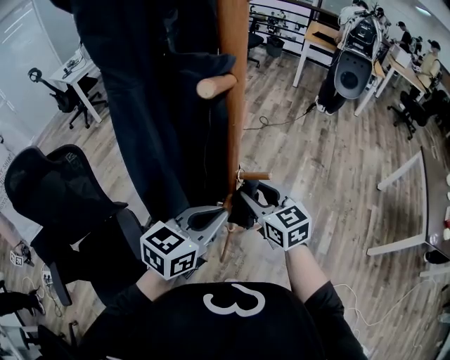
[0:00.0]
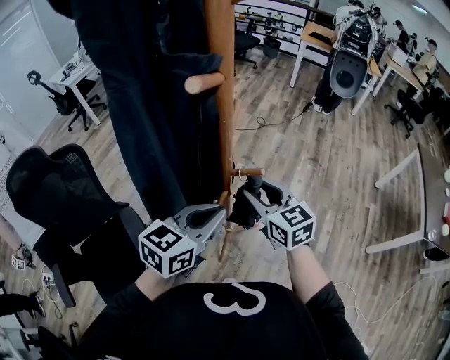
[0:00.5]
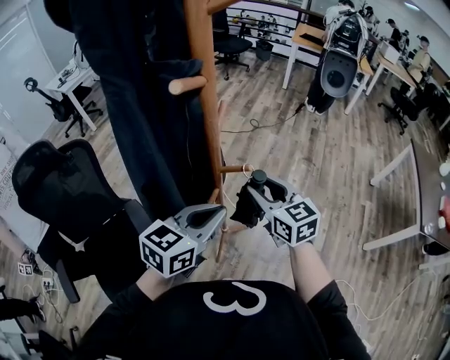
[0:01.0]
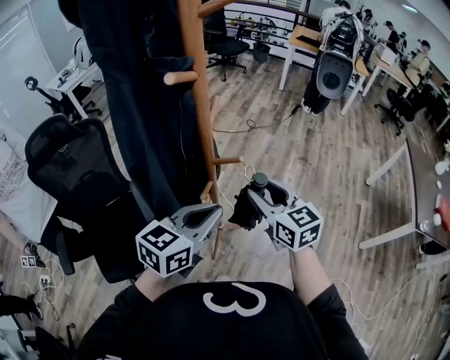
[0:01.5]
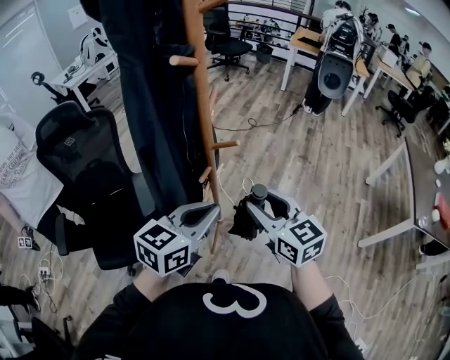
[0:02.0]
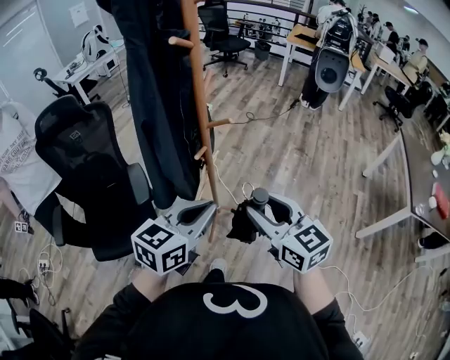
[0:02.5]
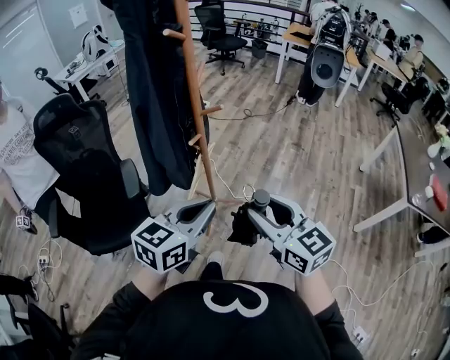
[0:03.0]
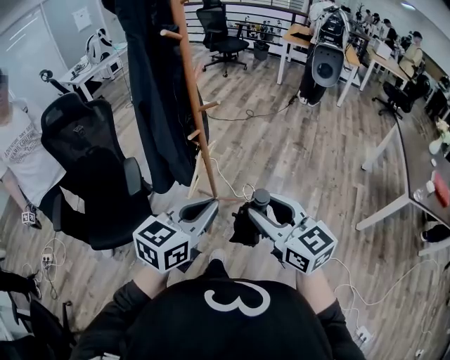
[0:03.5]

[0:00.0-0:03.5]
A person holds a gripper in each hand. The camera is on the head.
0:00.0 to 0:02.0: The right gripper goes some 20 cm backward, to the right and upward. The left gripper moves backward and to the right, approximately 10 cm.
0:02.0 to 0:03.5: Both grippers move backward, approximately 15 cm.

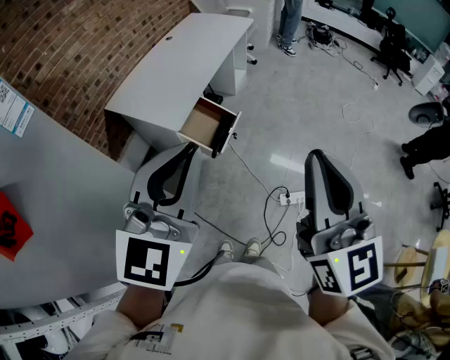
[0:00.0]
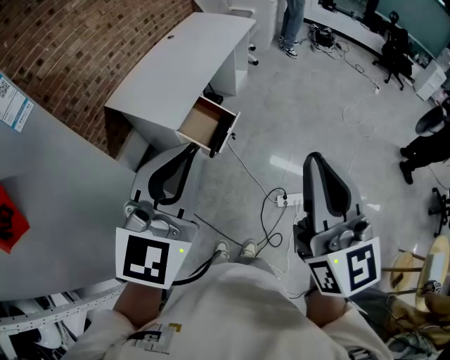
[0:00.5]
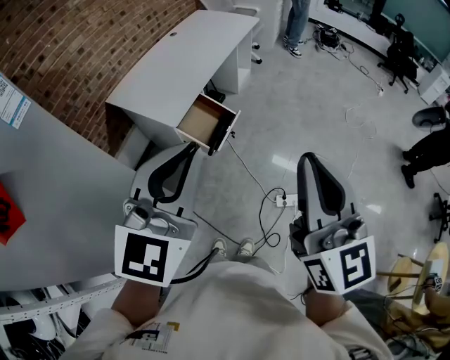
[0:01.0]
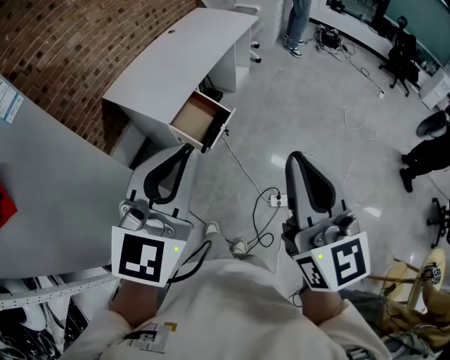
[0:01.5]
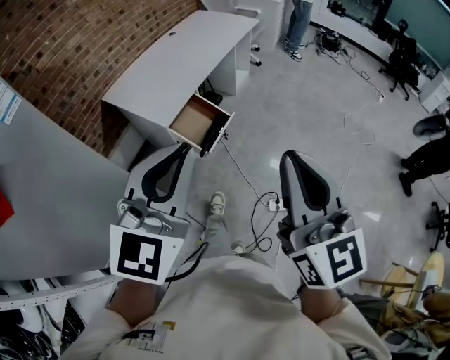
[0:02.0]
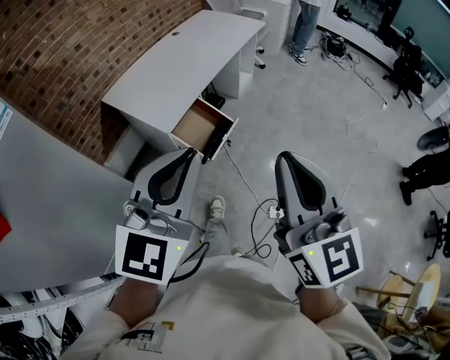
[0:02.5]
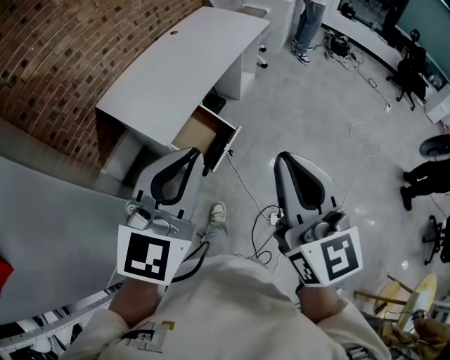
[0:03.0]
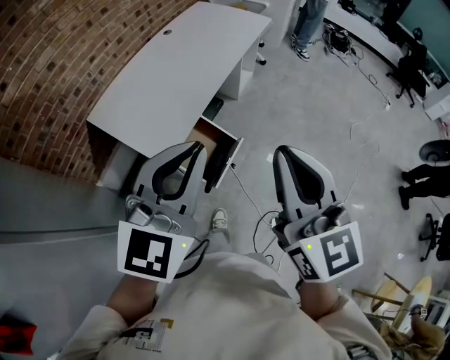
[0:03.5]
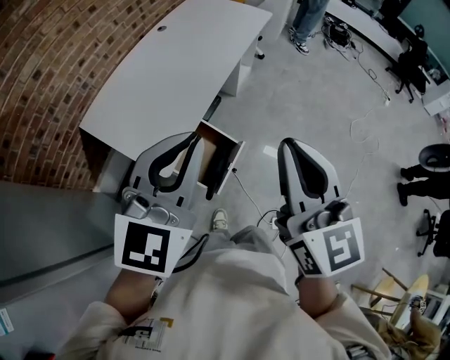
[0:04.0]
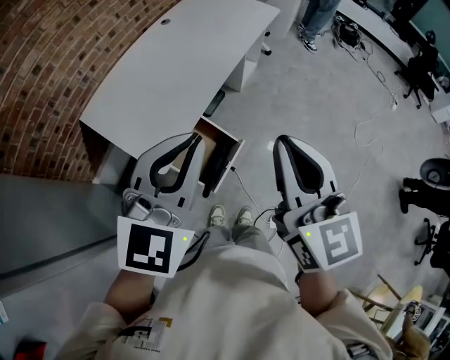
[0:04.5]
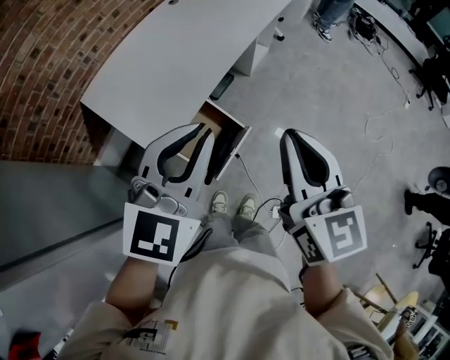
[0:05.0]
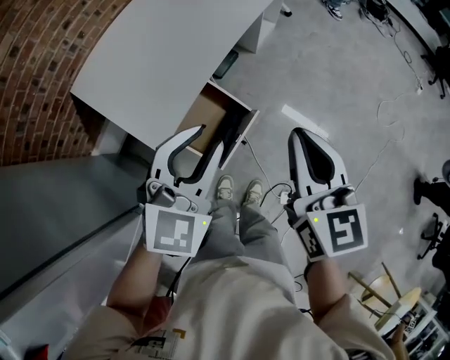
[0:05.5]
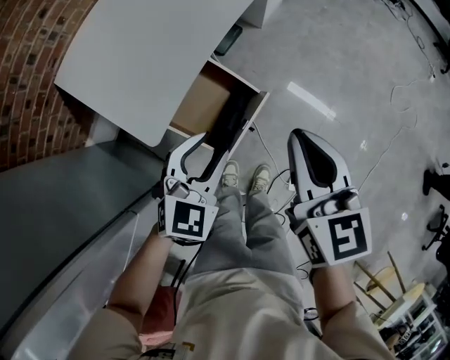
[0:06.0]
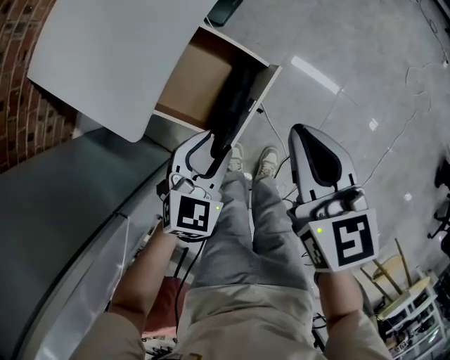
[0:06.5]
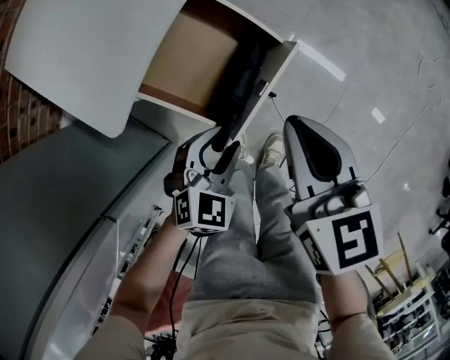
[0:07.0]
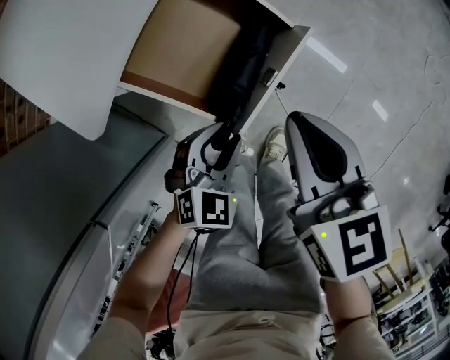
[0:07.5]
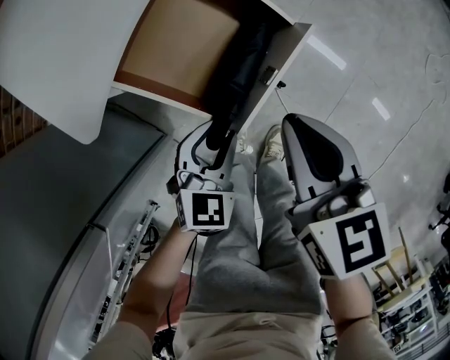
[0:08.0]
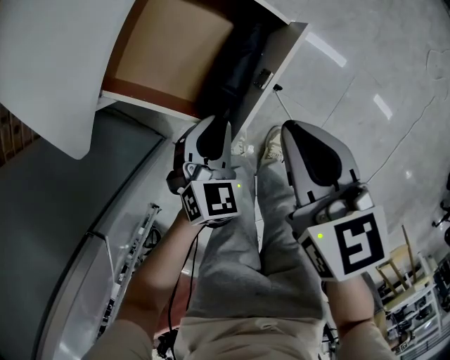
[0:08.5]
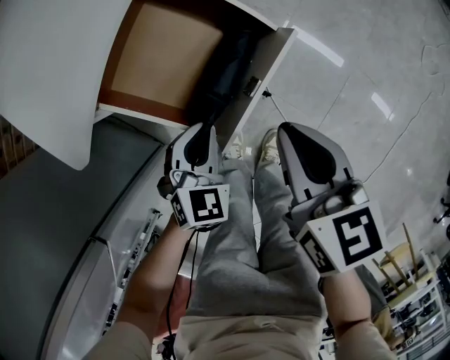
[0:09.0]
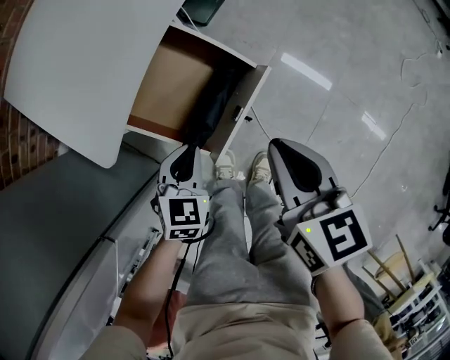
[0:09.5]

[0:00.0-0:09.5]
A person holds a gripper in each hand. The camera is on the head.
0:00.0 to 0:02.0: The left gripper moves to the right, roughly 5 cm. Meanwhile the right gripper changes place by approximately 5 cm.
0:02.0 to 0:04.0: The grippers both shift forward by some 40 cm.
0:04.0 to 0:05.5: The right gripper moves downward and forward, some 20 cm. The left gripper goes approximately 20 cm downward, and opens up.
0:05.5 to 0:07.5: The two grippers go roughly 40 cm downward. The left gripper turns by approximately 20 degrees, while the right gripper changes its angle by roughly 20 degrees.
0:07.5 to 0:09.5: The right gripper travels to the right by roughly 5 cm. The left gripper shifts about 10 cm forward and upward, swivels some 20 degrees, and closes.

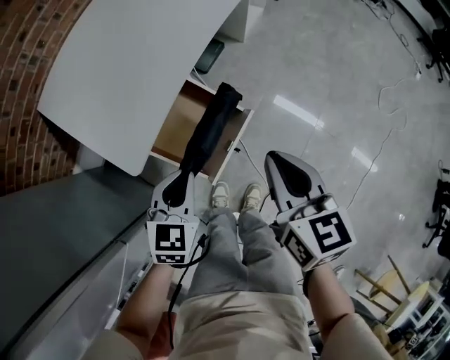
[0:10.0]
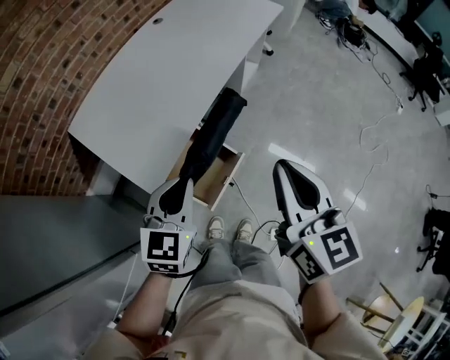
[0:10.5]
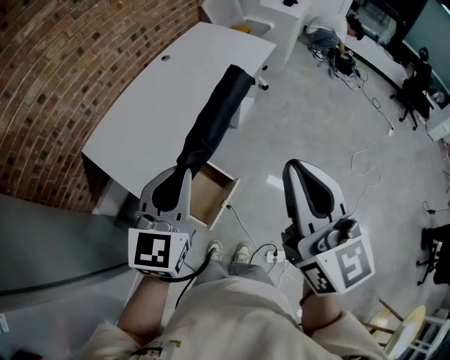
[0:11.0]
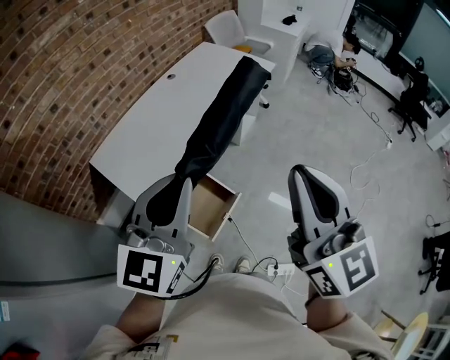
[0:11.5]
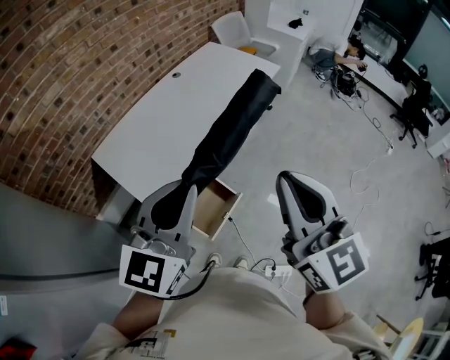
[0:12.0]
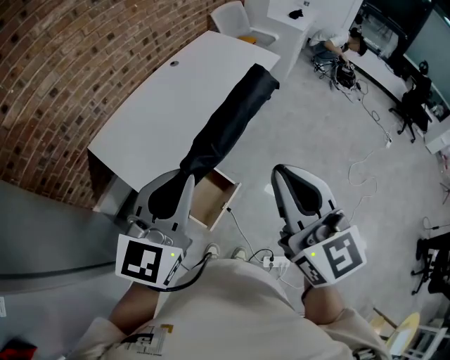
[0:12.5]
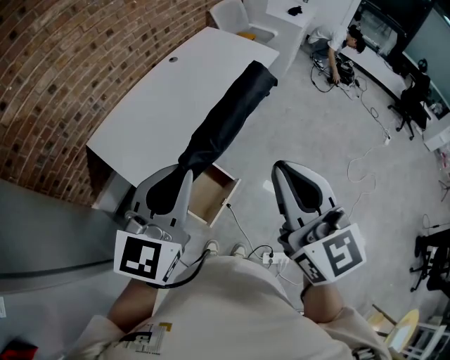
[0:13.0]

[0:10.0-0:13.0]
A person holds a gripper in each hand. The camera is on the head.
0:10.0 to 0:11.5: The two grippers go about 50 cm upward. The left gripper points its fingers about 40 degrees further upward; the right gripper points its fingers roughly 30 degrees further upward.
0:11.5 to 0:13.0: The right gripper ends up about 5 cm from where it was.

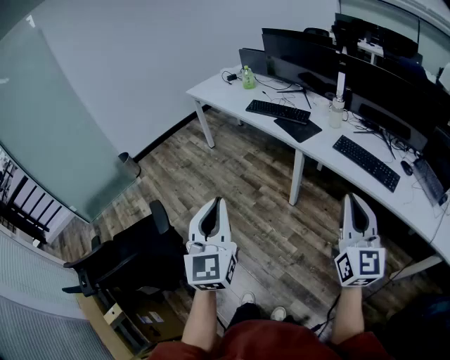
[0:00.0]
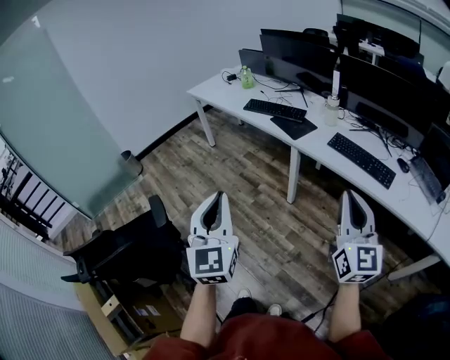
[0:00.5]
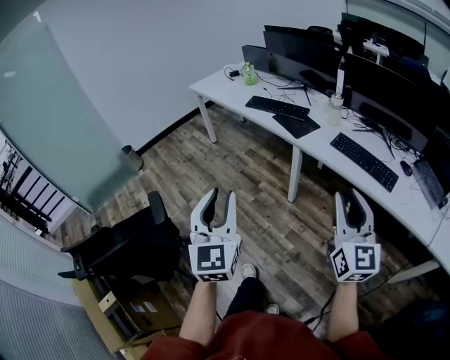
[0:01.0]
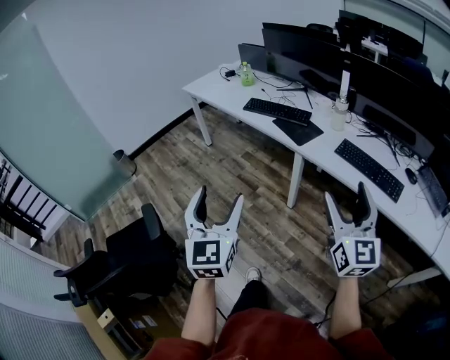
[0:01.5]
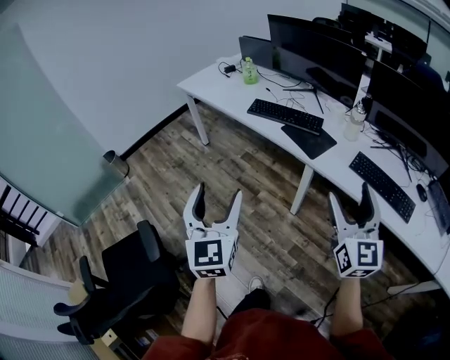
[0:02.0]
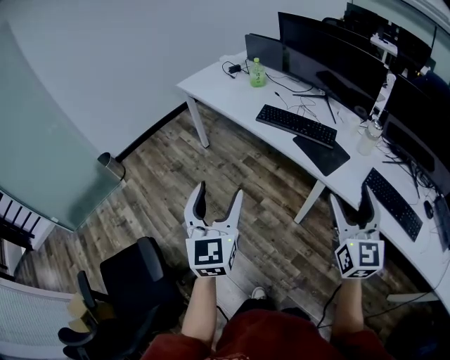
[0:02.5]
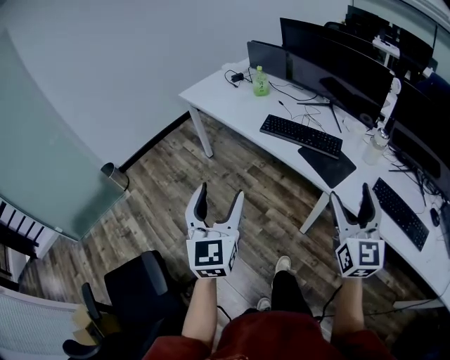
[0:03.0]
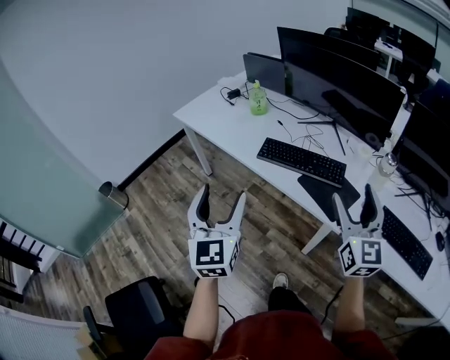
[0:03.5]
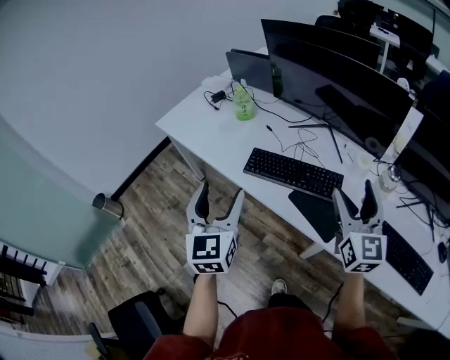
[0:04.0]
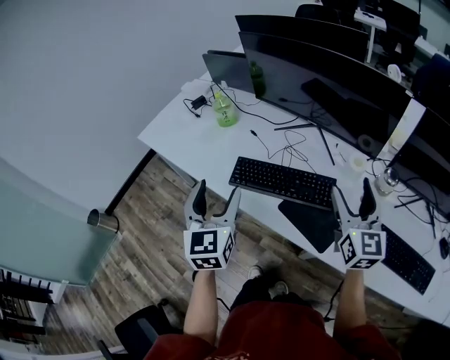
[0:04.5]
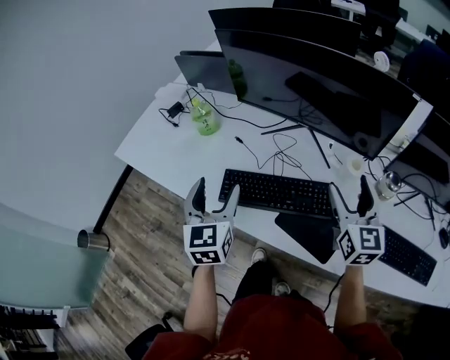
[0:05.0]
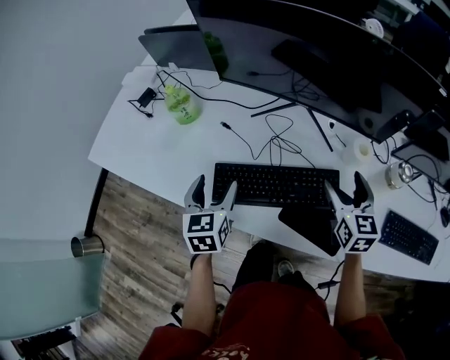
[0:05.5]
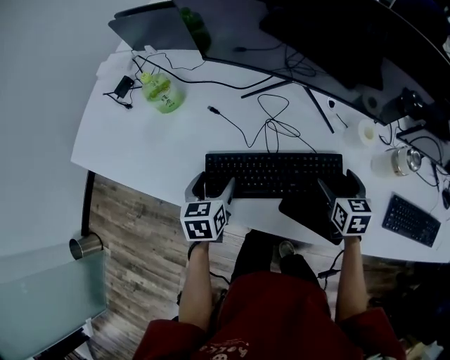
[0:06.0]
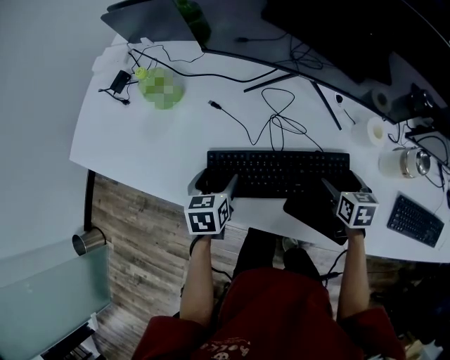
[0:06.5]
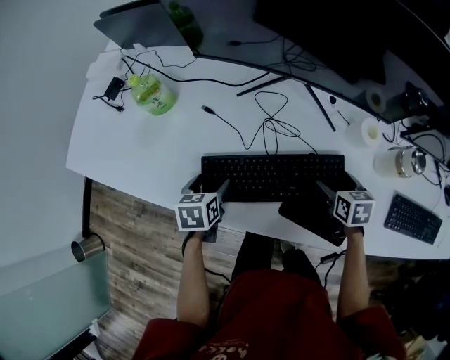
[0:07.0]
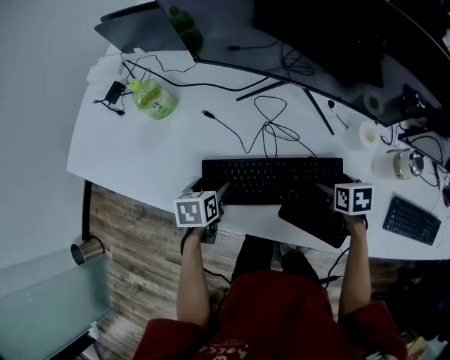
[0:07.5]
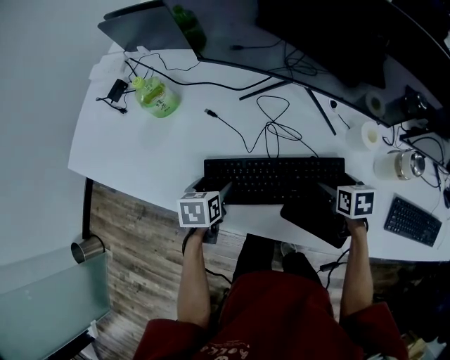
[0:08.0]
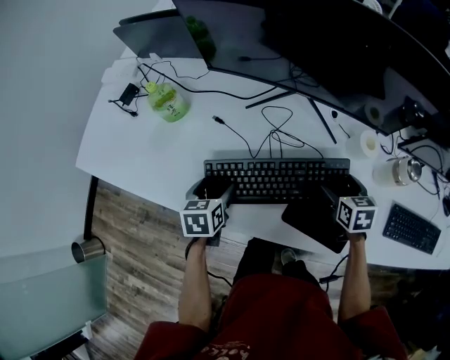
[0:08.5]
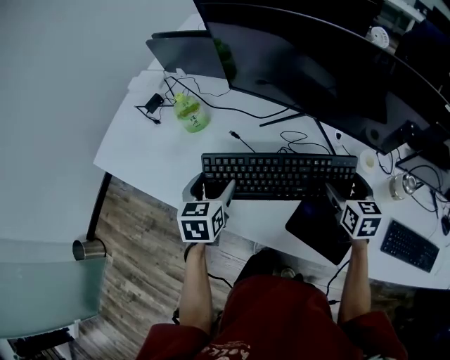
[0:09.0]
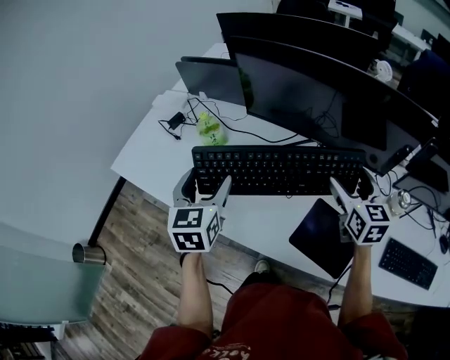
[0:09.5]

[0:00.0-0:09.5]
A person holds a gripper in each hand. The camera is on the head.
0:00.0 to 0:02.0: Both grippers move forward, some 25 cm. The right gripper opens its fingers. The left gripper opens up.
0:02.0 to 0:04.0: The pair of grippers is taken forward, about 40 cm.
0:04.0 to 0:05.5: The two grippers go approximately 30 cm forward and downward. The left gripper rotates approximately 30 degrees. Meanwhile the right gripper turns by roughly 30 degrees.
0:05.5 to 0:07.5: Both grippers travel together downward, roughly 15 cm. The left gripper turns by some 30 degrees. The right gripper tips its fingers downward by roughly 40 degrees.
0:07.5 to 0:09.5: The grippers both shift upward by some 30 cm. The right gripper tilts its fingers some 50 degrees upward, while the left gripper angles its fingers upward, by roughly 40 degrees.
